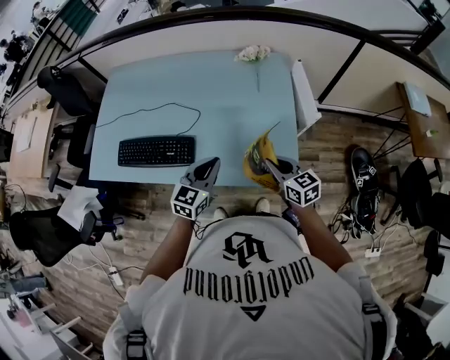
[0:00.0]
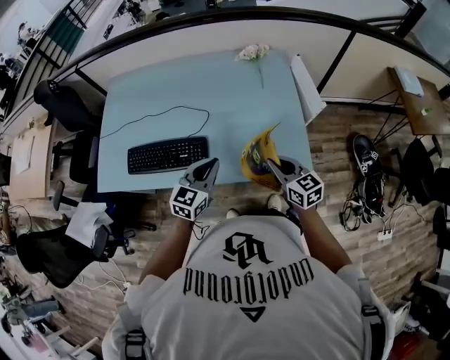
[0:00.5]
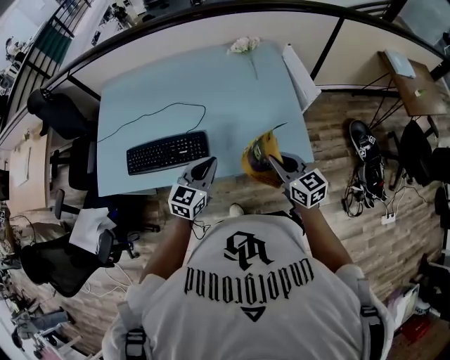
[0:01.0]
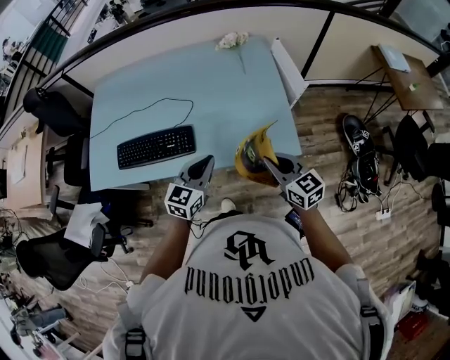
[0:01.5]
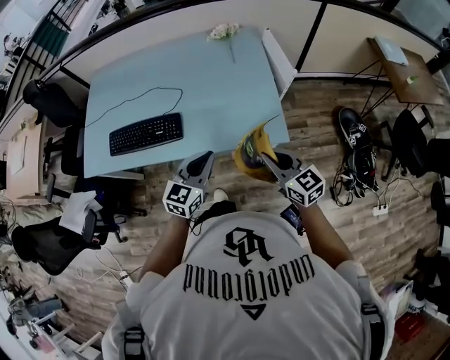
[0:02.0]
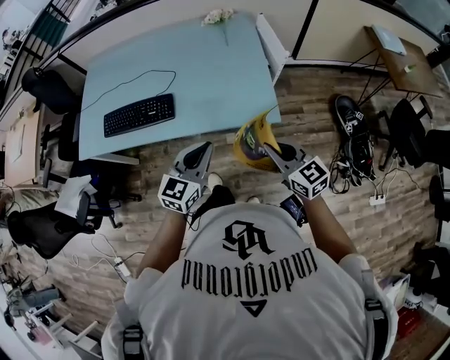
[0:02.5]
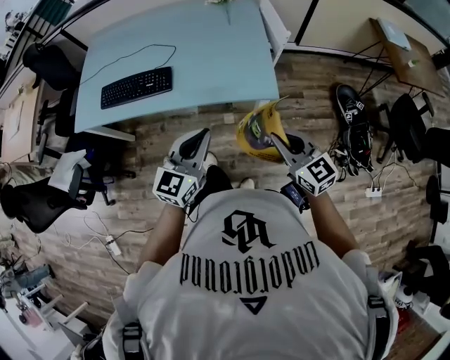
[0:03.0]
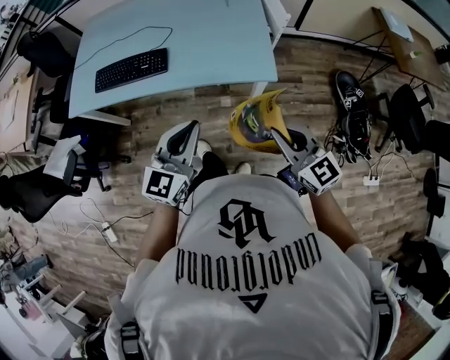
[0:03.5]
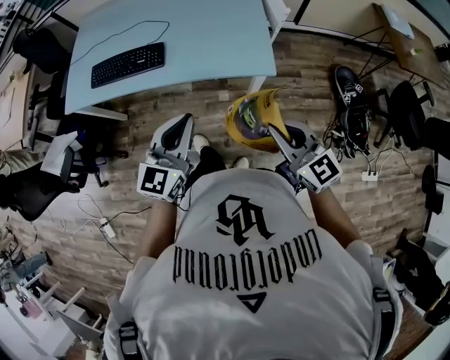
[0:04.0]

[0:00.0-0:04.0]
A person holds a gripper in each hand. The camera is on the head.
0:00.0 to 0:02.0: The grippers both shift backward by some 15 cm.
0:02.0 to 0:04.0: Both grippers move backward, about 20 cm.

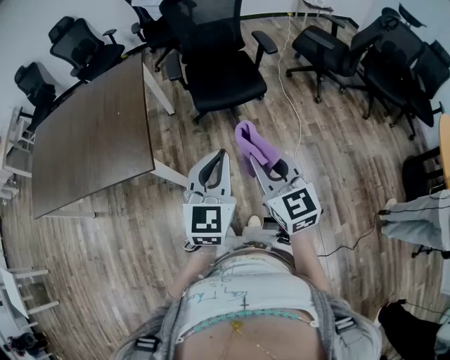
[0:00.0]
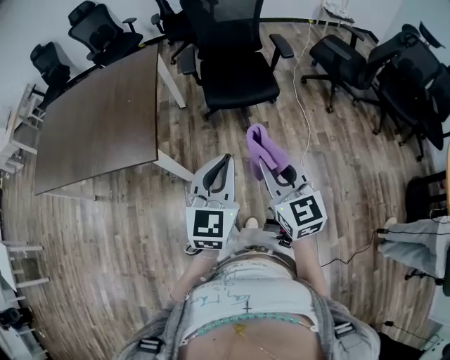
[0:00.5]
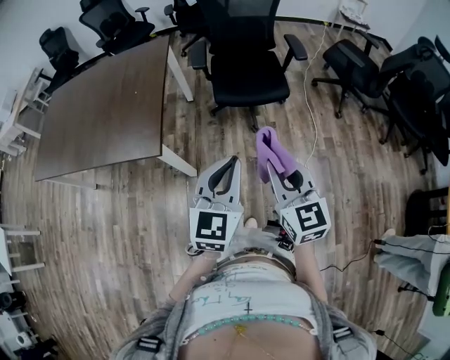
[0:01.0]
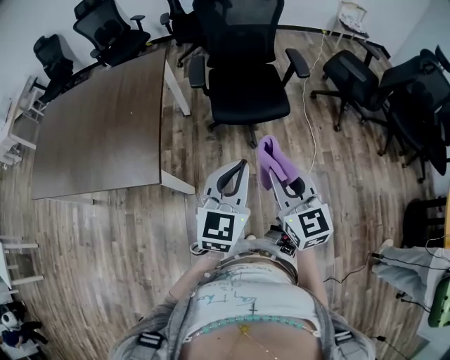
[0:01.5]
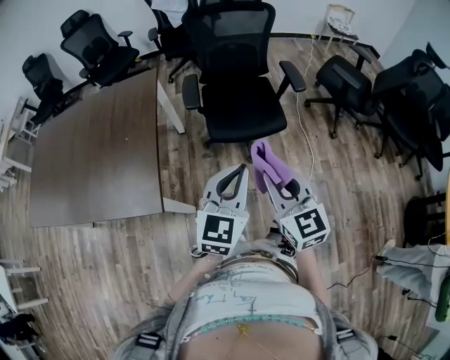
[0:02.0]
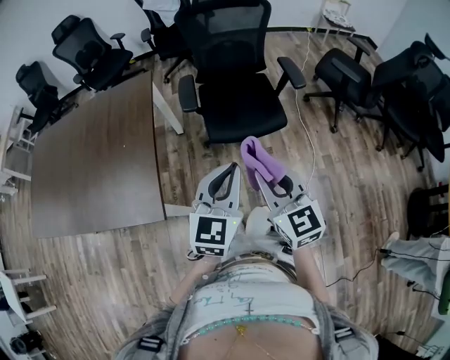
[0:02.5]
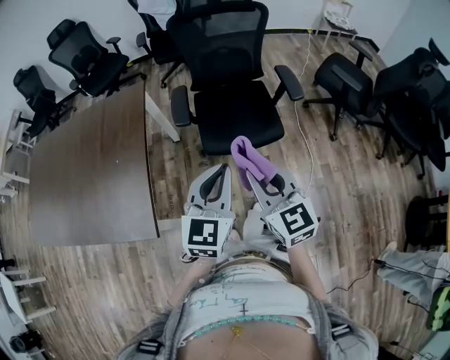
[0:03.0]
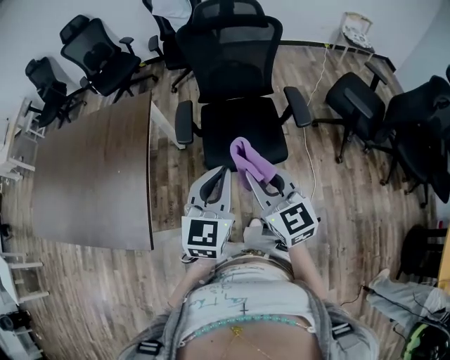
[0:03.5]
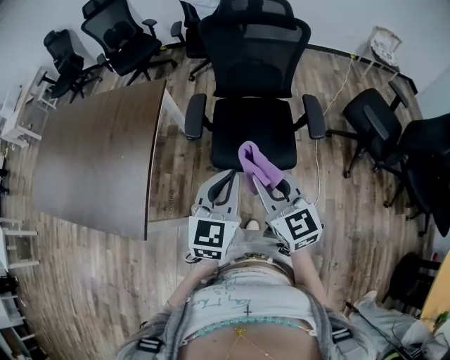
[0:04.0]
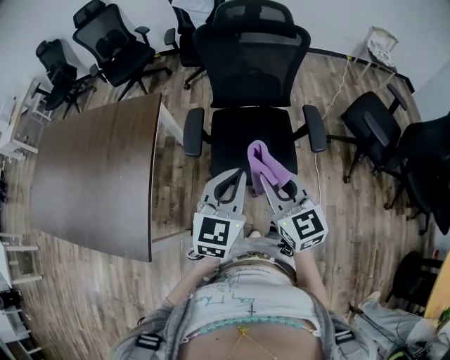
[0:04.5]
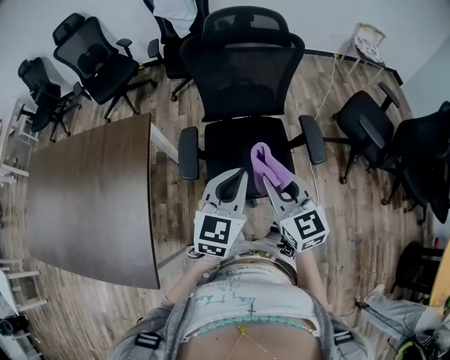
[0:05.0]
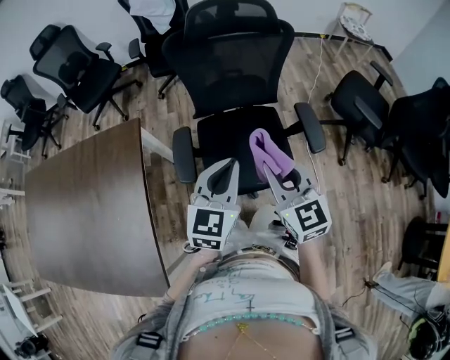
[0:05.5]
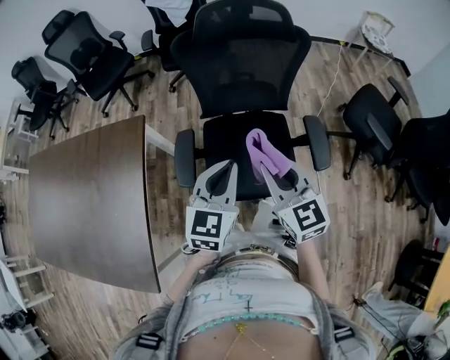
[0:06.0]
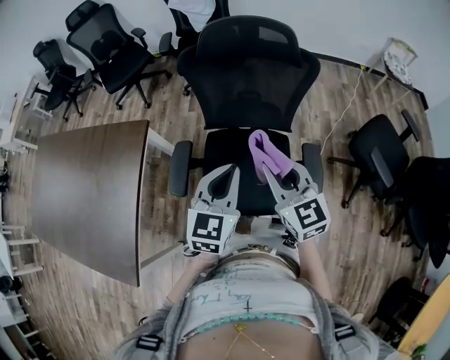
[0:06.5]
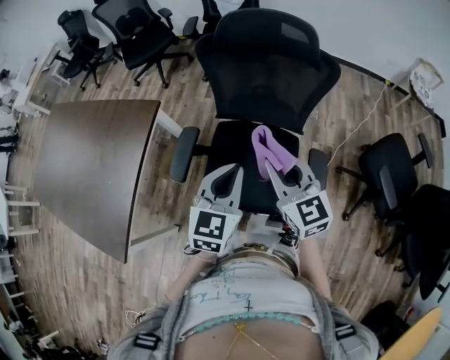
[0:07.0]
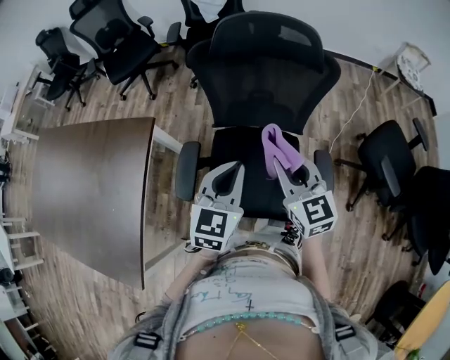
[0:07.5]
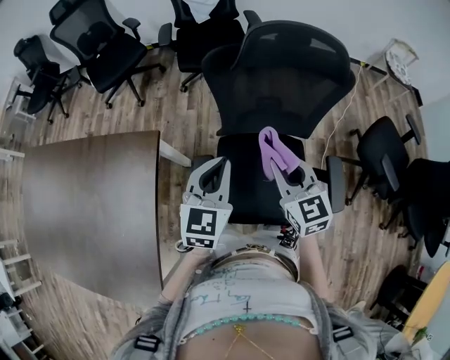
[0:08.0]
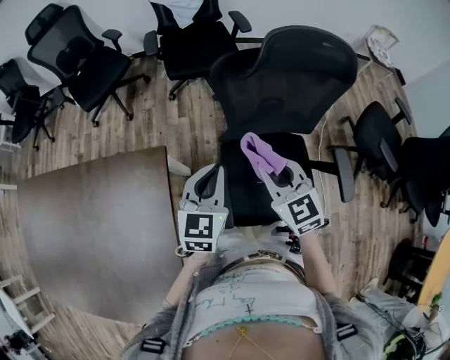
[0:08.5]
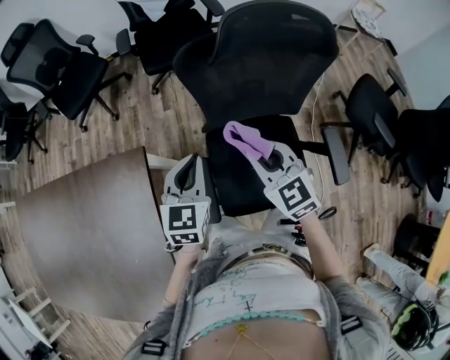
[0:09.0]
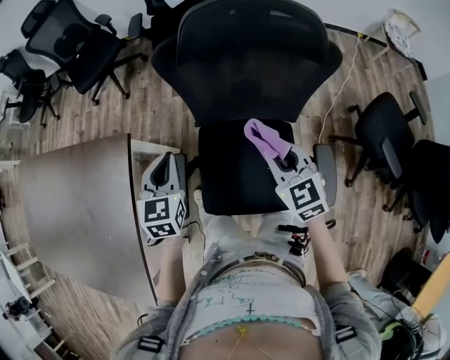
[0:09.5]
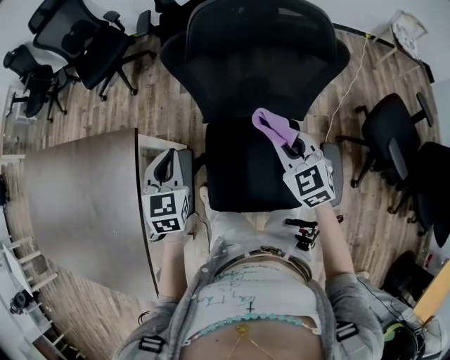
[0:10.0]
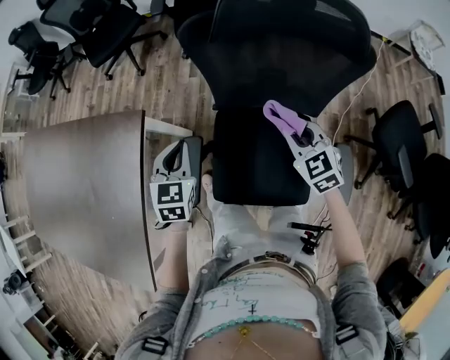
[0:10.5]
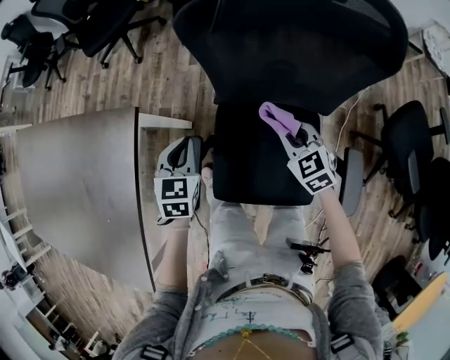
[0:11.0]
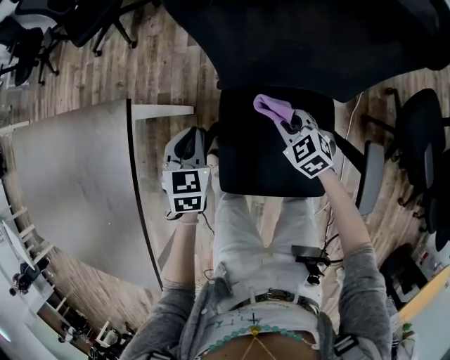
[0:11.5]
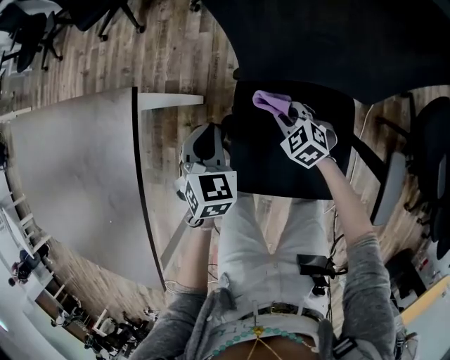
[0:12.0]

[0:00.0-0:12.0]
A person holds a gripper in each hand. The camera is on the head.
0:00.0 to 0:02.0: Both grippers move forward, approximately 20 cm.
0:02.0 to 0:04.0: The grippers both shift forward by approximately 25 cm.
0:04.0 to 0:06.0: Both grippers move forward, about 25 cm.
0:06.0 to 0:08.0: The left gripper goes about 20 cm forward and to the left. Meanwhile the right gripper shifts about 20 cm forward.
0:08.0 to 0:10.0: The left gripper travels downward by approximately 10 cm, moves about 10 cm to the left and comes back, and swivels roughly 20 degrees, while the right gripper goes roughly 15 cm to the right, downward and forward.
0:10.0 to 0:12.0: The left gripper heads downward, covering some 20 cm, while the right gripper is displaced downward by some 35 cm, and changes its angle by roughly 30 degrees.

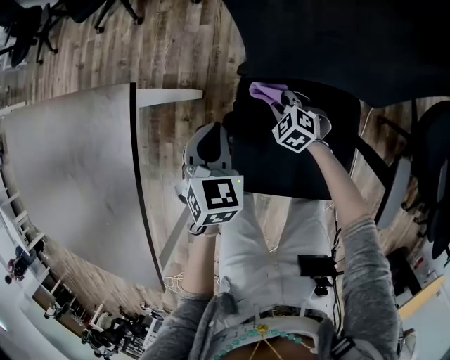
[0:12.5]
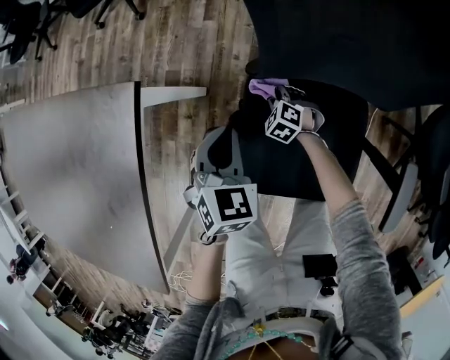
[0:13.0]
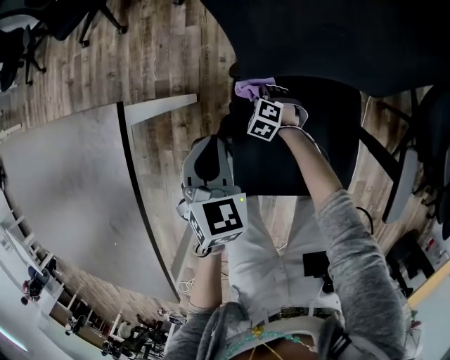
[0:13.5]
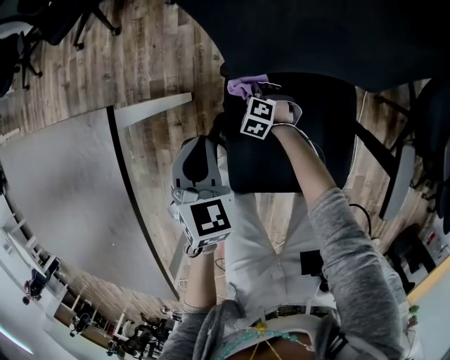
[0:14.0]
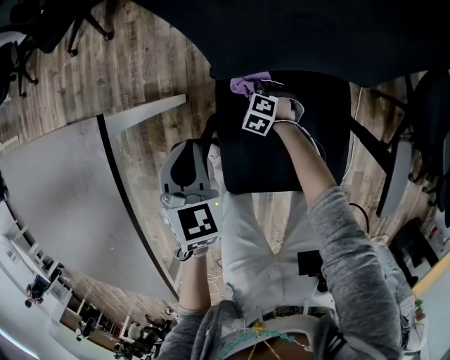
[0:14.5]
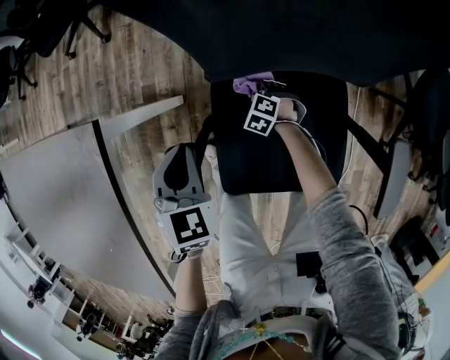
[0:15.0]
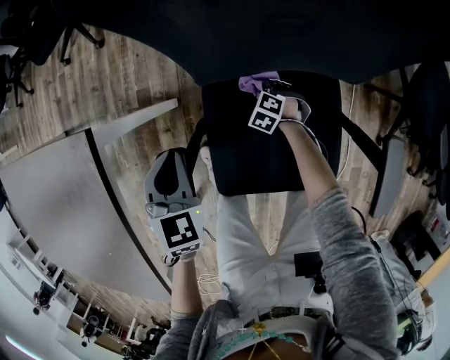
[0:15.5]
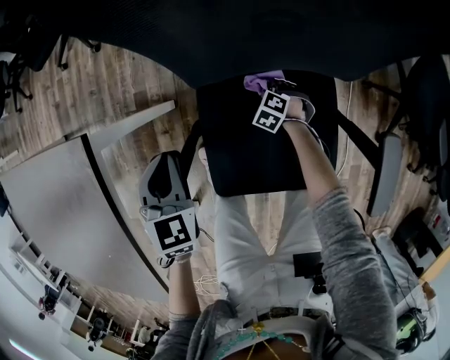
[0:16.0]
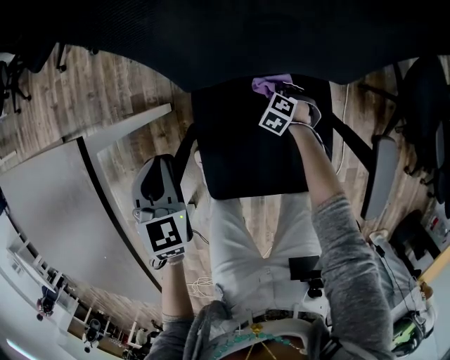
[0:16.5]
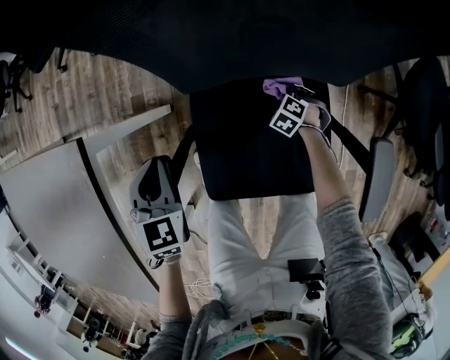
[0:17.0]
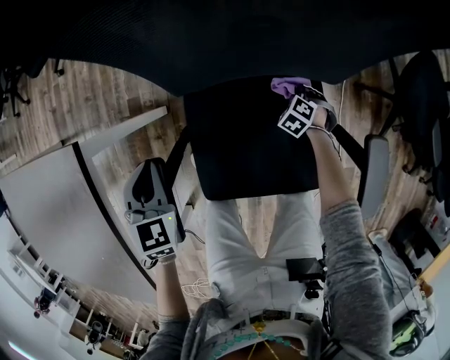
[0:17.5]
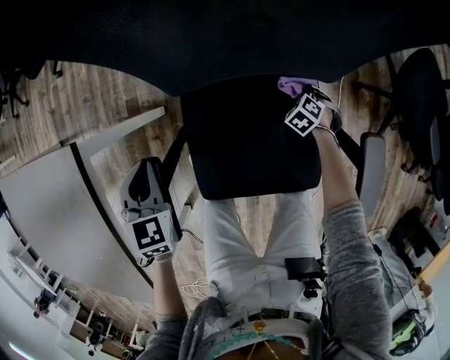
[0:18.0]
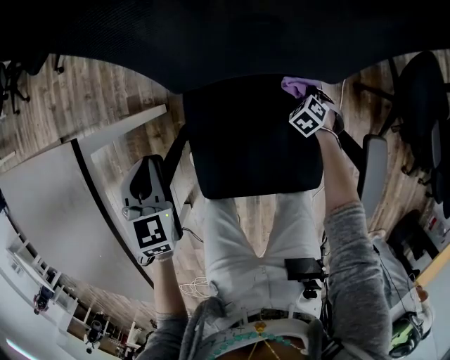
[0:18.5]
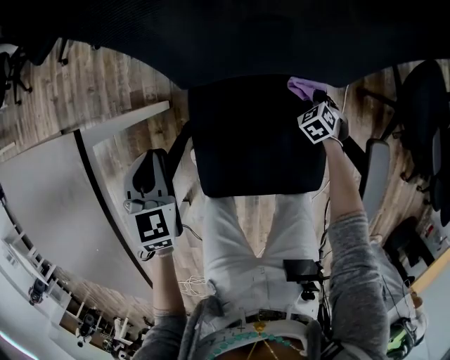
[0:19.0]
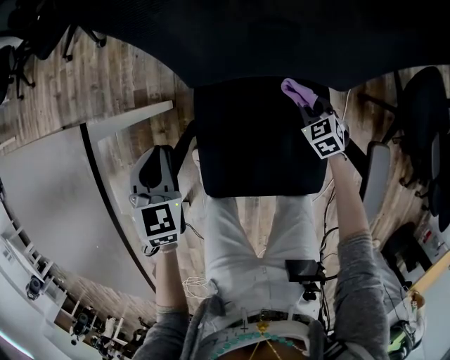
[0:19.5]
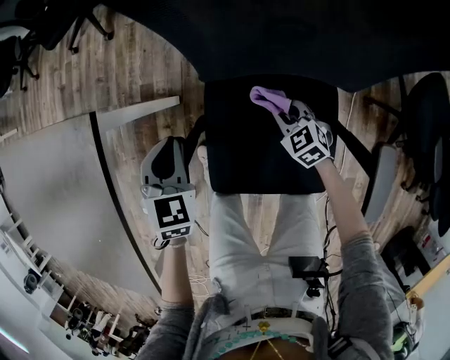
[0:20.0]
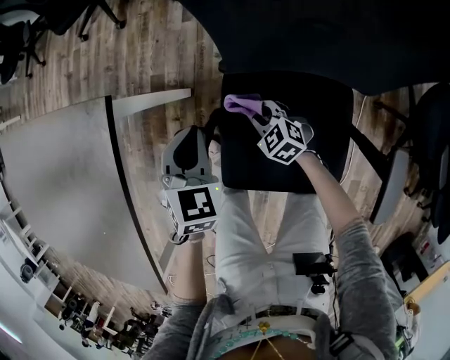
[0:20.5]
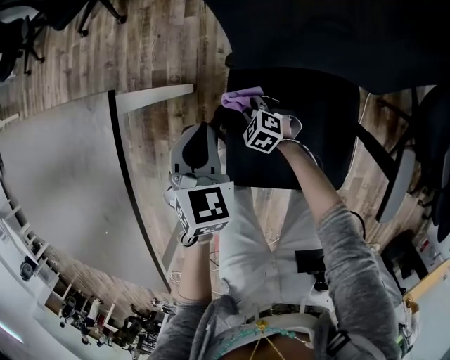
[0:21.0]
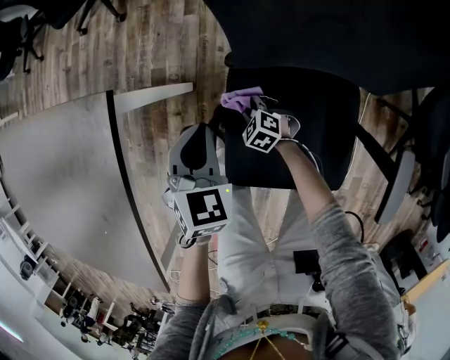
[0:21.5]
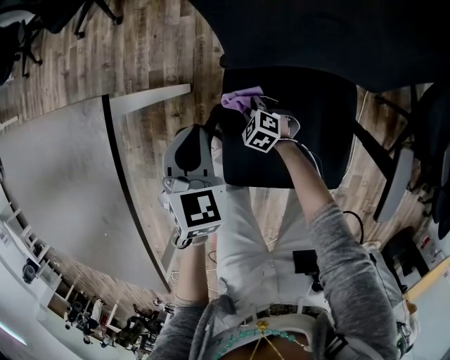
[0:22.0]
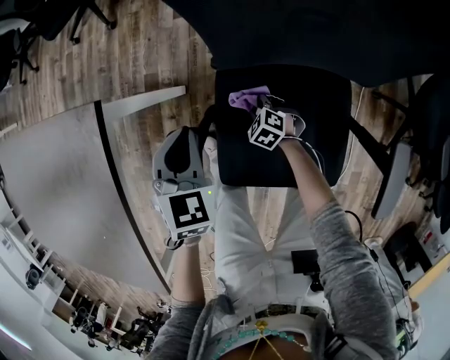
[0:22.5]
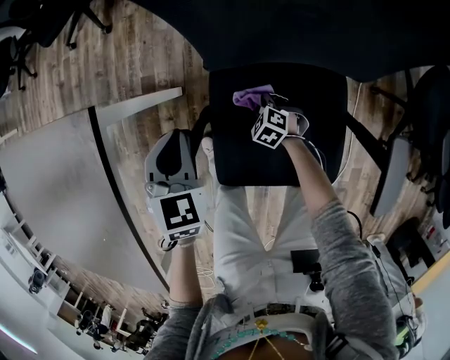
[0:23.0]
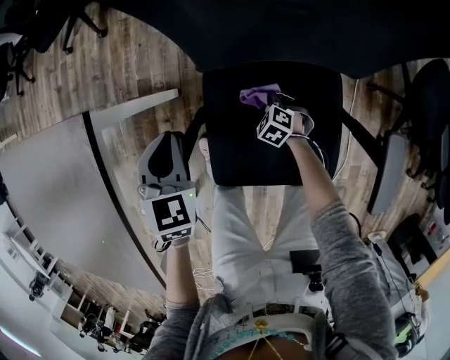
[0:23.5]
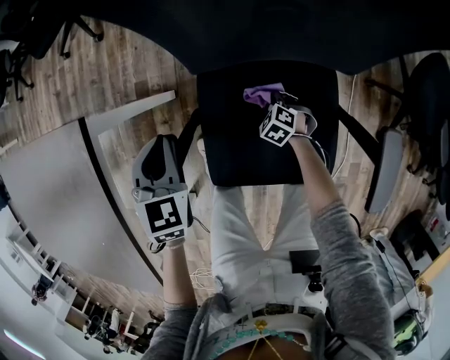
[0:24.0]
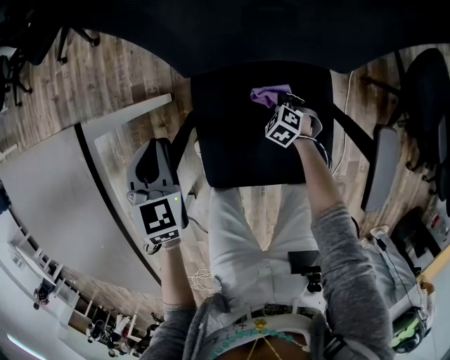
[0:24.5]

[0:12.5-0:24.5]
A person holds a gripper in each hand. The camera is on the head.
0:12.5 to 0:14.5: The right gripper goes some 10 cm downward.
0:14.5 to 0:16.5: The right gripper moves about 15 cm.
0:16.5 to 0:18.5: The right gripper ends up about 15 cm from where it was.
0:18.5 to 0:20.5: The right gripper shifts by roughly 30 cm, and turns by approximately 40 degrees.
0:20.5 to 0:22.5: The right gripper travels downward by about 10 cm.
0:22.5 to 0:24.5: The right gripper shifts some 15 cm to the right and backward.
